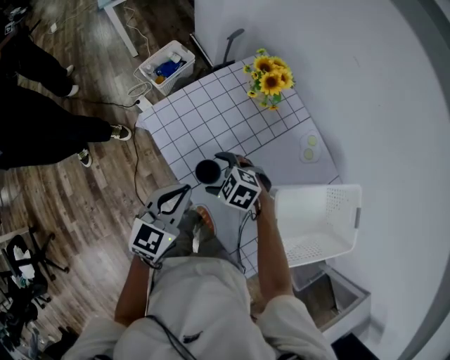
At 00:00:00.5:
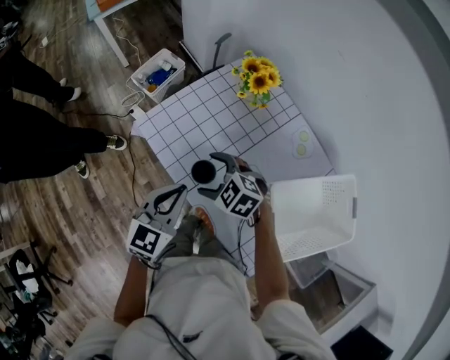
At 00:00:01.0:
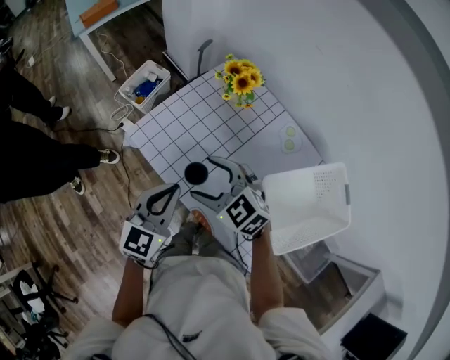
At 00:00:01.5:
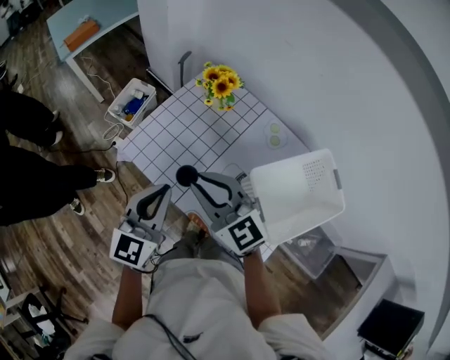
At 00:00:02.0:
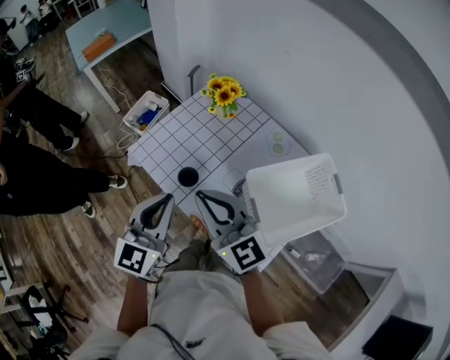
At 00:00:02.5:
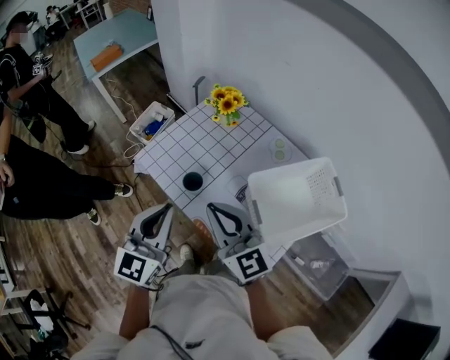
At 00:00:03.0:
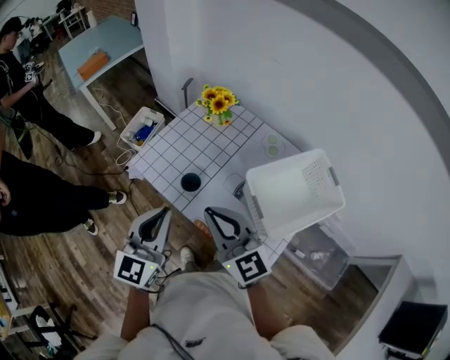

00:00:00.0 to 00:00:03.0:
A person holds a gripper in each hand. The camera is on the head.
00:00:00.0 to 00:00:01.5: The left gripper shifts some 10 cm upward; the right gripper heads upward, covering some 25 cm, points its fingers about 40 degrees further upward, and closes its fingers.
00:00:01.5 to 00:00:03.0: The left gripper is displaced backward by some 10 cm. The right gripper moves backward and upward, about 10 cm, and turns by roughly 20 degrees.

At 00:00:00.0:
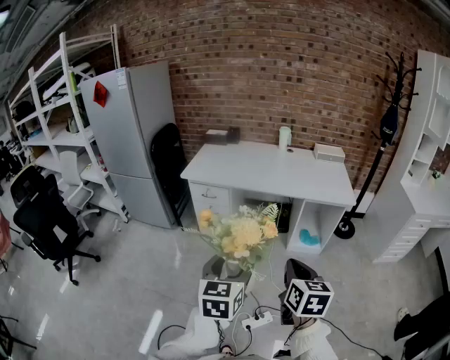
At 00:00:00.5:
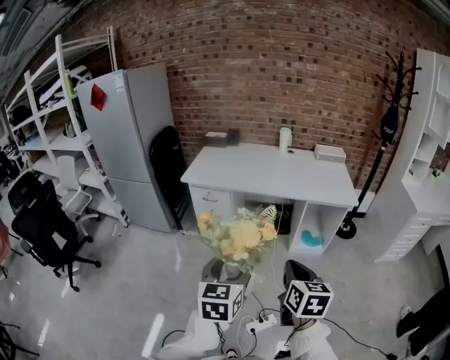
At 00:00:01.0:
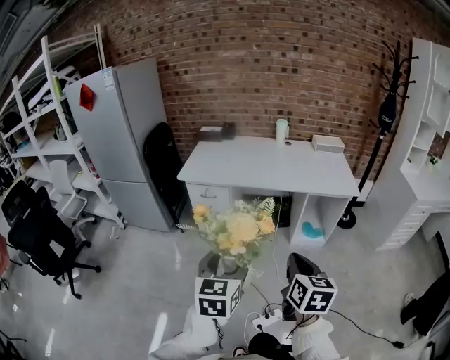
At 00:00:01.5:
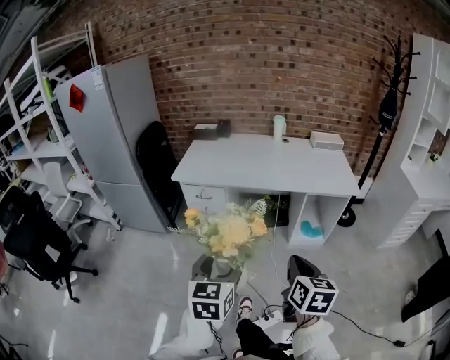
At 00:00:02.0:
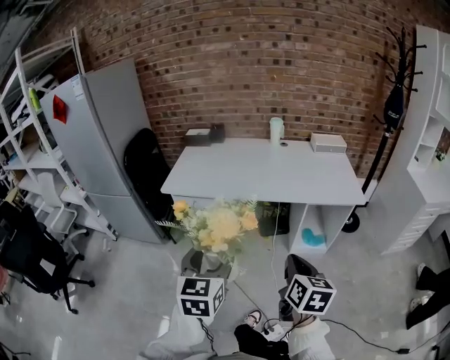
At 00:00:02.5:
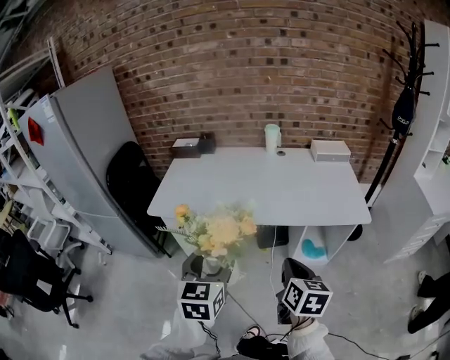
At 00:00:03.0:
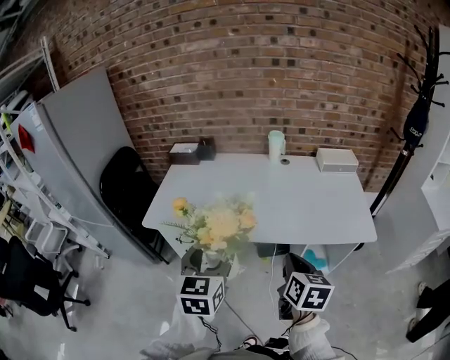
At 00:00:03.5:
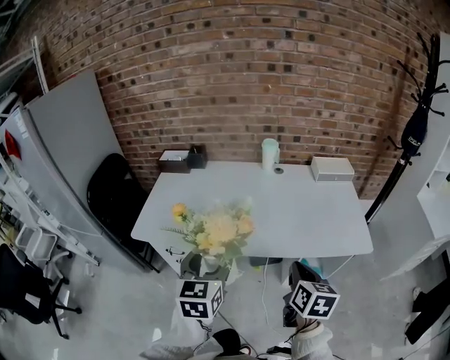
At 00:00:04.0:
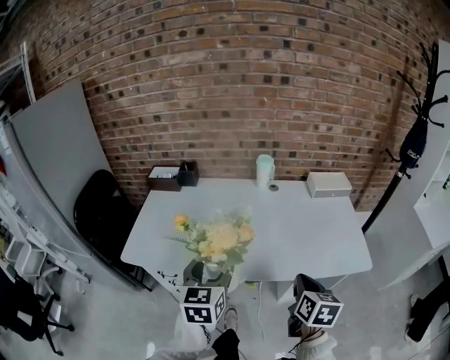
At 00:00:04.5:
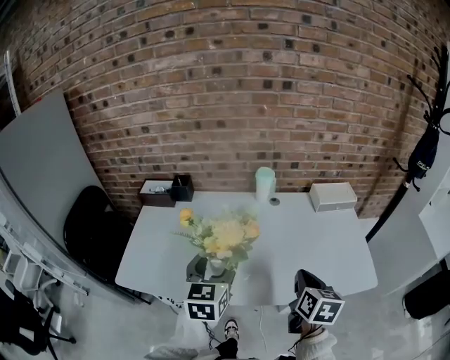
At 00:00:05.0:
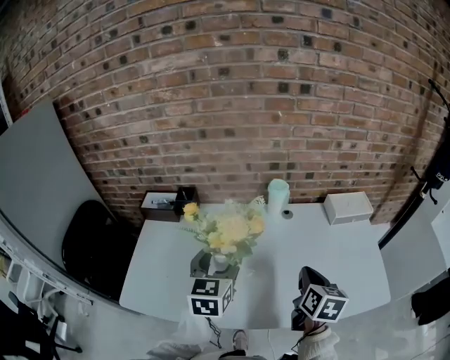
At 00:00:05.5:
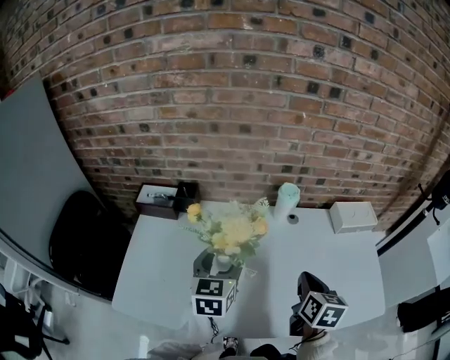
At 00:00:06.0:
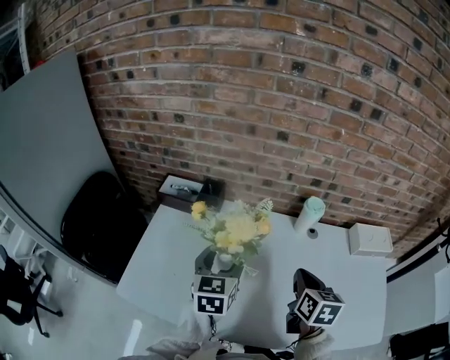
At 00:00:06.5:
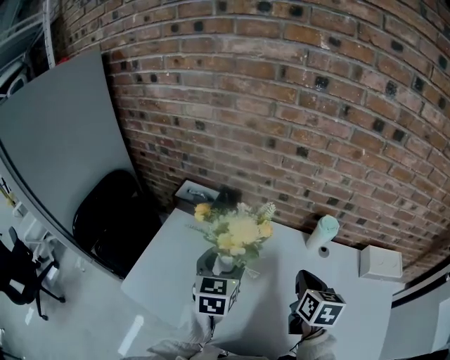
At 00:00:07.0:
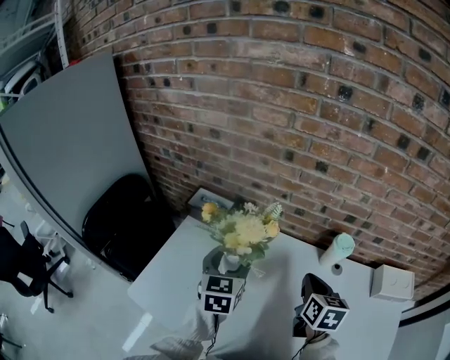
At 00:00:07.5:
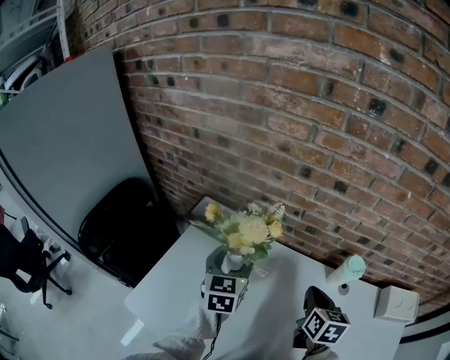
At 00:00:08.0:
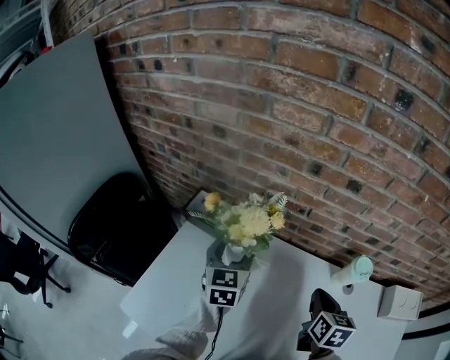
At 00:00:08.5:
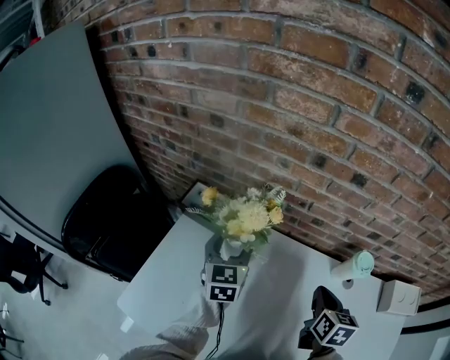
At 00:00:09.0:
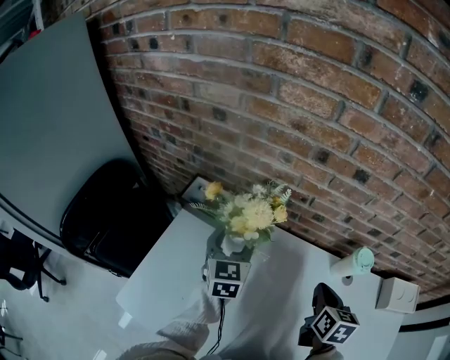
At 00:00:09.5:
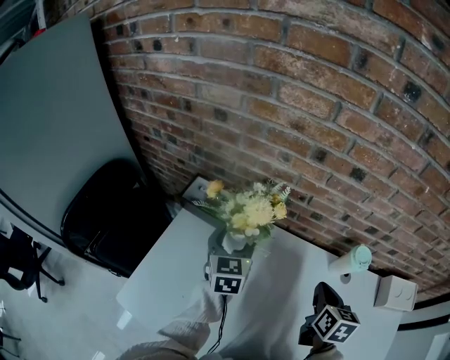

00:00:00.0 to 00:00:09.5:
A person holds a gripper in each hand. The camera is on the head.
00:00:00.0 to 00:00:02.0: Both grippers move forward, about 20 cm.
00:00:02.0 to 00:00:04.0: Both grippers travel together forward, approximately 35 cm.
00:00:04.0 to 00:00:05.5: The grippers both shift forward by approximately 30 cm.
00:00:05.5 to 00:00:07.5: The grippers both shift forward and to the left by about 25 cm. The left gripper rotates approximately 20 degrees. Meanwhile the right gripper changes its angle by roughly 20 degrees.
00:00:07.5 to 00:00:09.5: The left gripper shifts roughly 5 cm forward.

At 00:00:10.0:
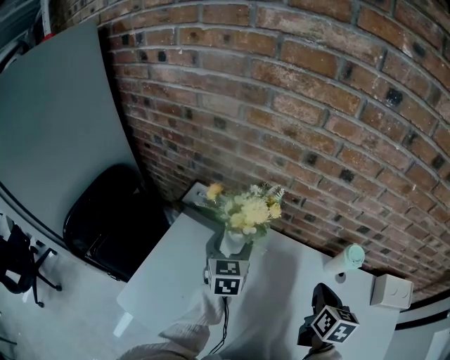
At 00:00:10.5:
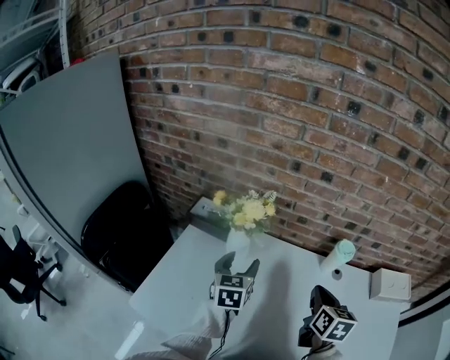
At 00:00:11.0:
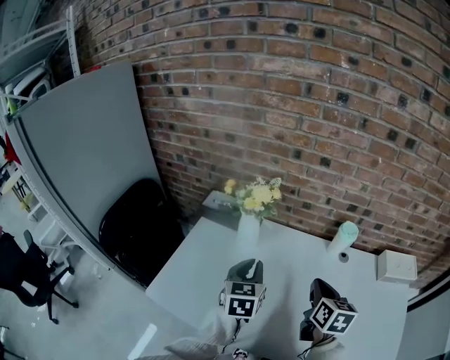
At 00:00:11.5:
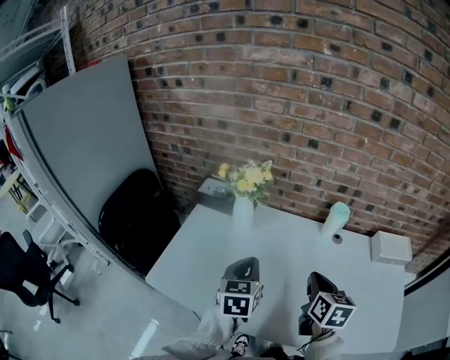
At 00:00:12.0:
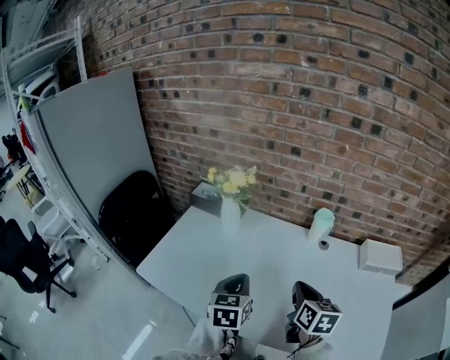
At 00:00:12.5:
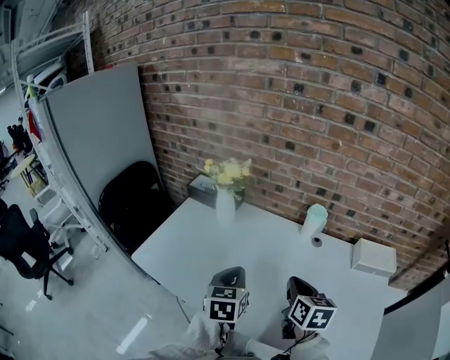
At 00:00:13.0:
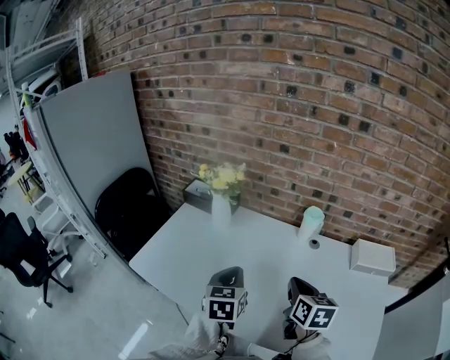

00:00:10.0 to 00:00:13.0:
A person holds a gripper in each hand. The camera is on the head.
00:00:10.0 to 00:00:11.5: The two grippers go about 20 cm backward. The left gripper closes.
00:00:11.5 to 00:00:13.0: The left gripper goes some 10 cm to the right and backward. Meanwhile the right gripper travels to the right by about 5 cm.

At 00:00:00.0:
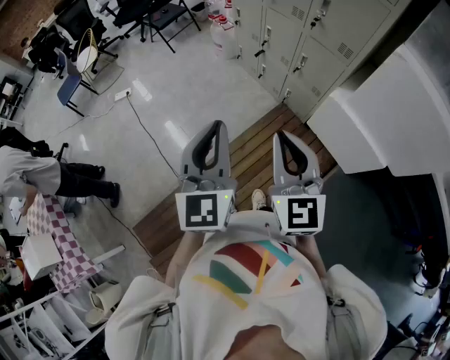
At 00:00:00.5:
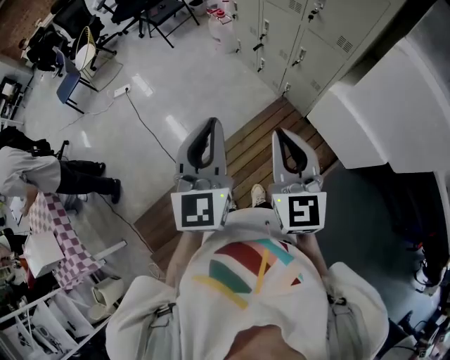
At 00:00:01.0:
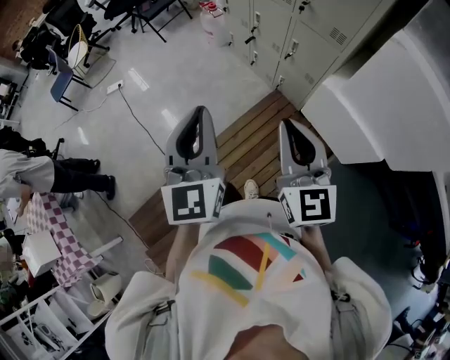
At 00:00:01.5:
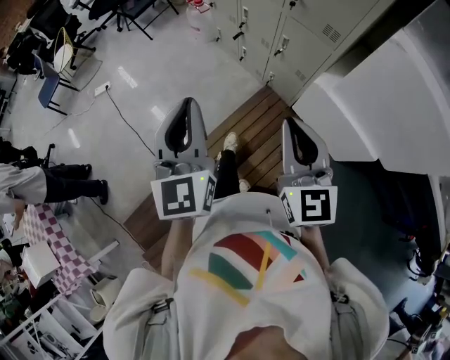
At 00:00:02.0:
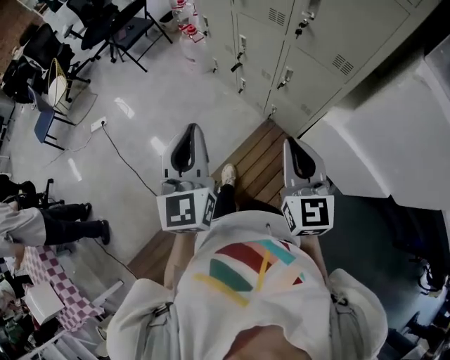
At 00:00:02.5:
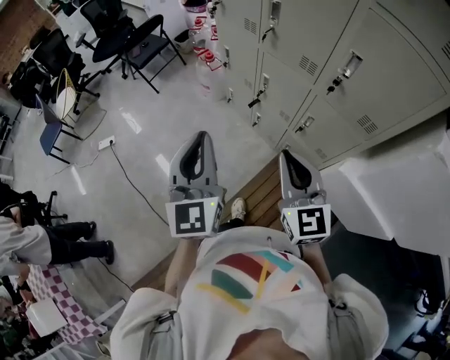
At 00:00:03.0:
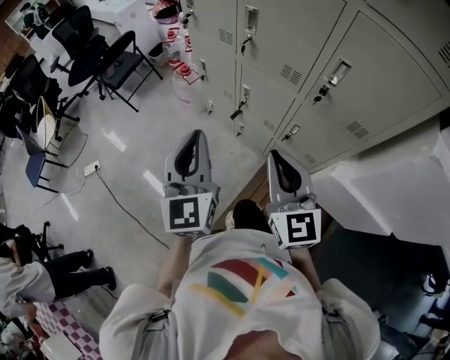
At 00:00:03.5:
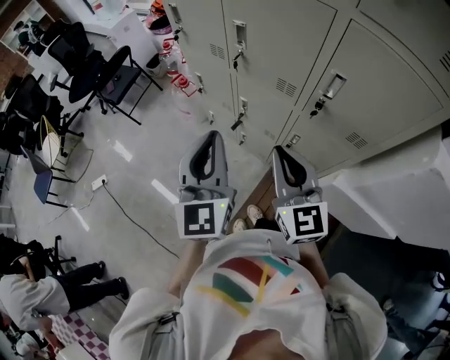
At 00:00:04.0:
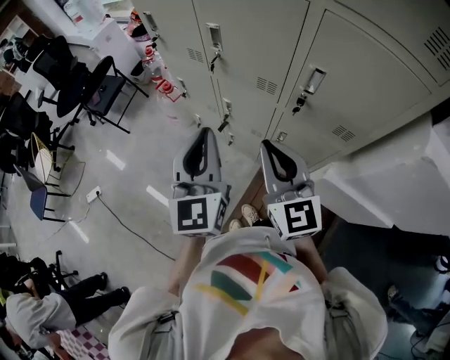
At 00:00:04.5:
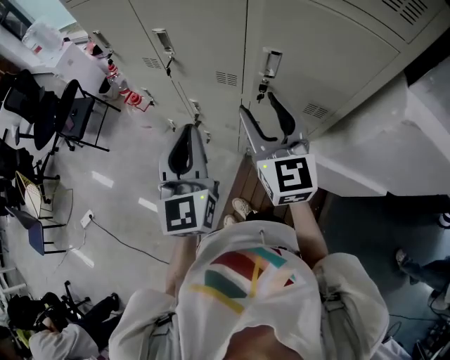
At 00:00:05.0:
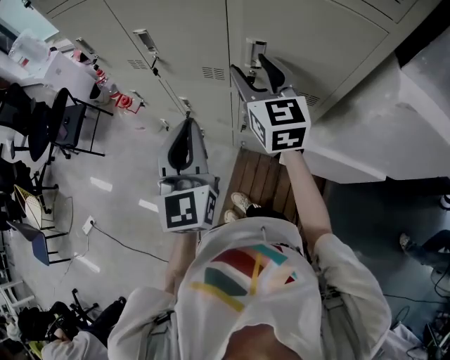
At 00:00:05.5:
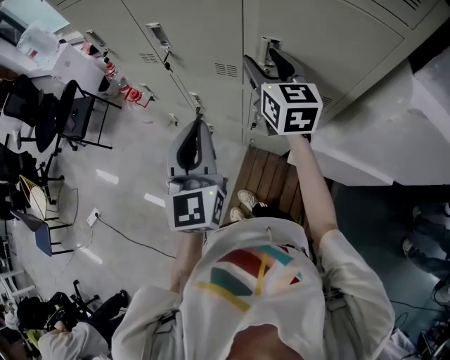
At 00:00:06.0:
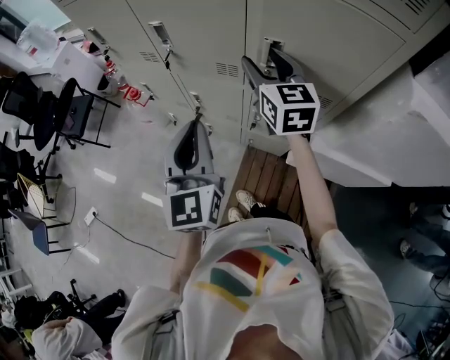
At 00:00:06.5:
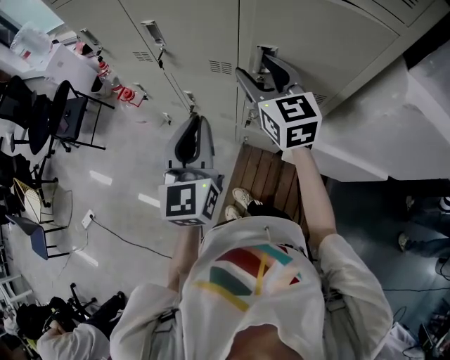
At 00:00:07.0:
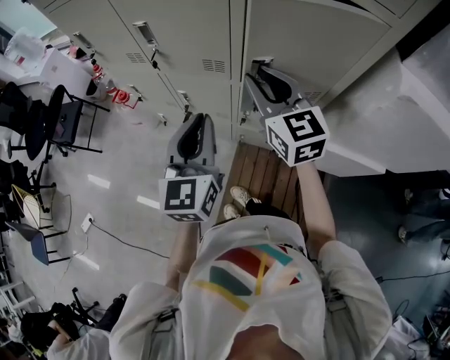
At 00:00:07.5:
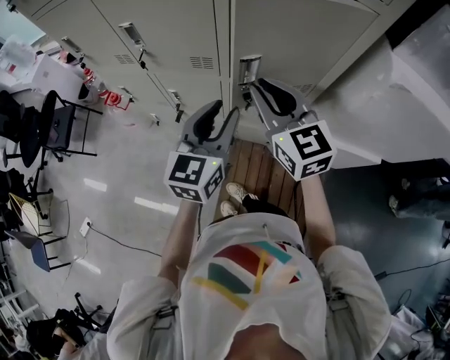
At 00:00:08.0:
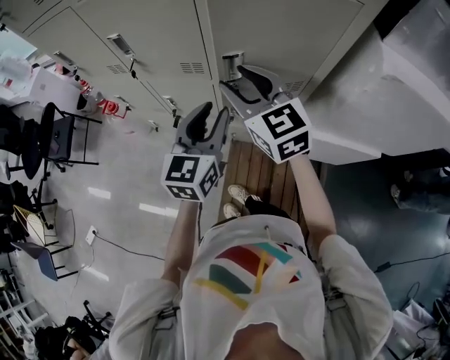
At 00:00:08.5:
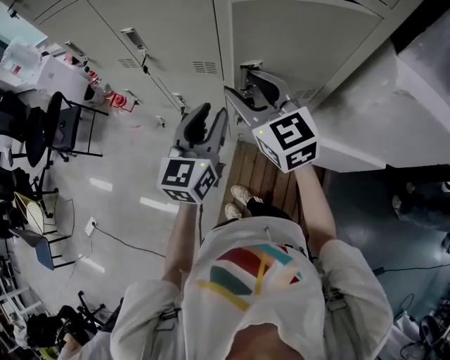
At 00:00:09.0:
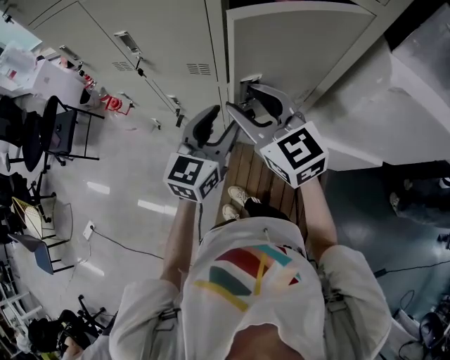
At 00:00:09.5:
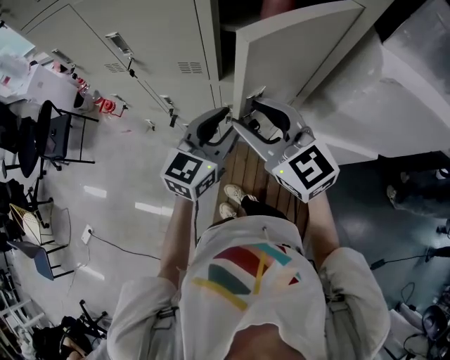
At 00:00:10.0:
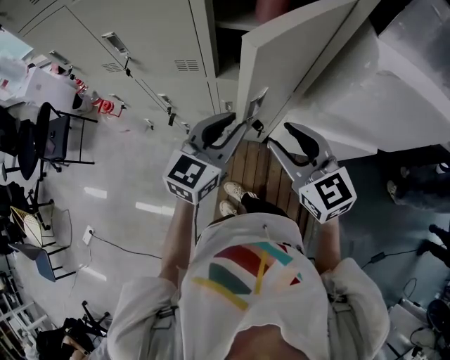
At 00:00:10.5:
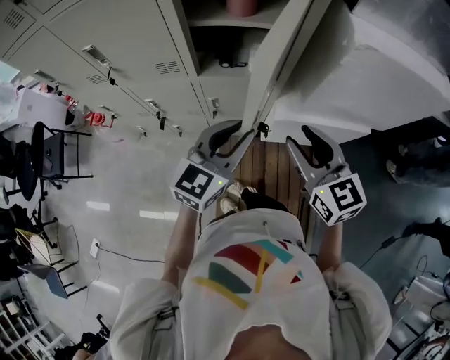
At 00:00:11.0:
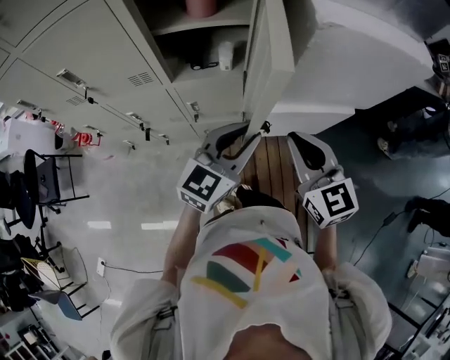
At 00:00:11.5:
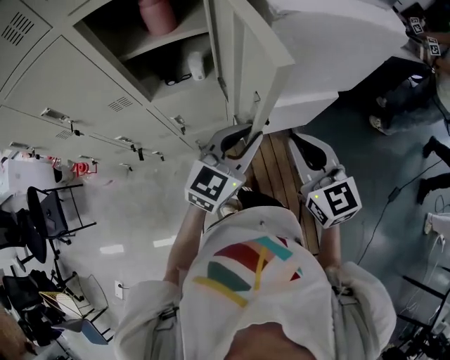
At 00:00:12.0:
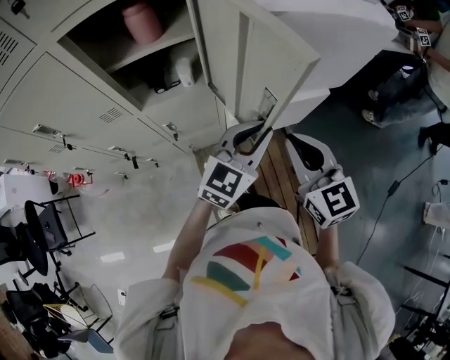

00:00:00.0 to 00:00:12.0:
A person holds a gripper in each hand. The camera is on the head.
00:00:00.0 to 00:00:02.0: The left gripper goes roughly 25 cm forward and downward, while the right gripper shifts roughly 25 cm forward, downward and to the right.
00:00:02.0 to 00:00:04.0: The grippers both shift forward by about 30 cm.
00:00:04.0 to 00:00:06.0: The right gripper heads forward and to the right, covering approximately 20 cm, and opens; the left gripper is displaced to the right by some 5 cm.
00:00:06.0 to 00:00:08.0: The right gripper shifts some 10 cm backward, and closes and opens again. Meanwhile the left gripper shifts some 15 cm to the right and downward, rotates roughly 30 degrees, and opens up.
00:00:08.0 to 00:00:10.0: The right gripper heads backward and to the right, covering roughly 15 cm; the left gripper shifts approximately 5 cm to the right, and rotates roughly 20 degrees.
00:00:10.0 to 00:00:12.0: The right gripper changes place by about 20 cm, changes its angle by some 30 degrees, and closes up, while the left gripper moves about 25 cm, and turns by about 30 degrees.
